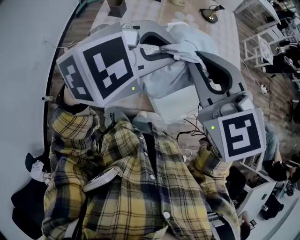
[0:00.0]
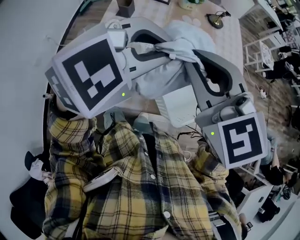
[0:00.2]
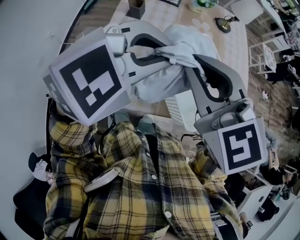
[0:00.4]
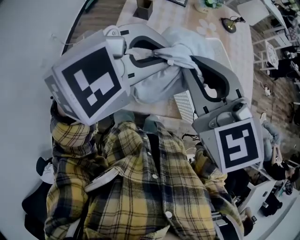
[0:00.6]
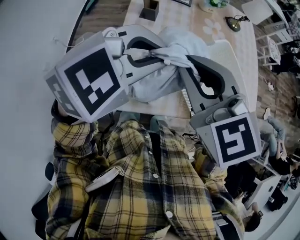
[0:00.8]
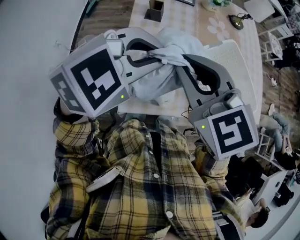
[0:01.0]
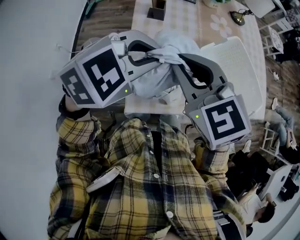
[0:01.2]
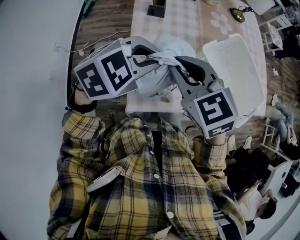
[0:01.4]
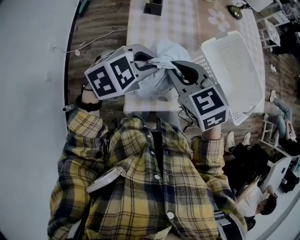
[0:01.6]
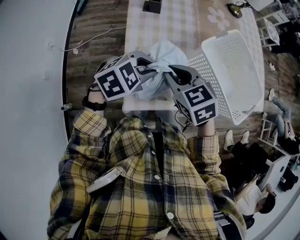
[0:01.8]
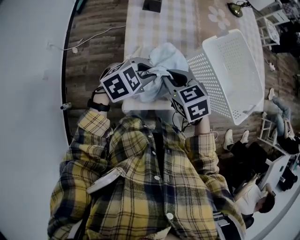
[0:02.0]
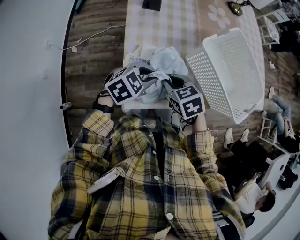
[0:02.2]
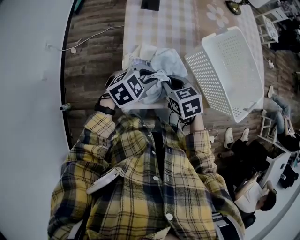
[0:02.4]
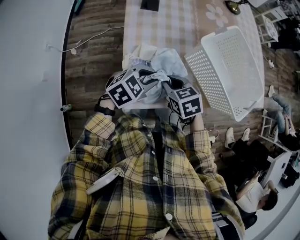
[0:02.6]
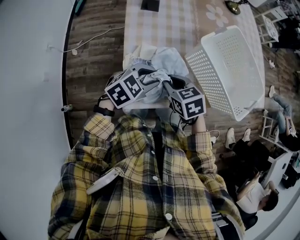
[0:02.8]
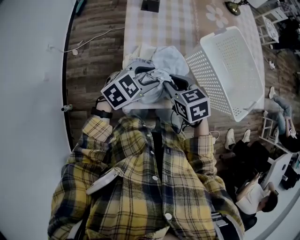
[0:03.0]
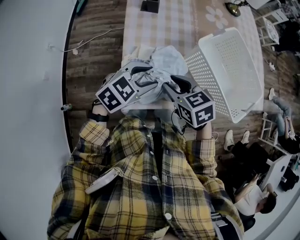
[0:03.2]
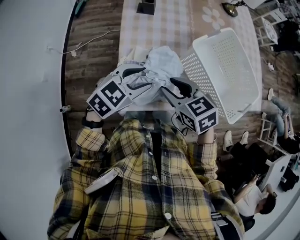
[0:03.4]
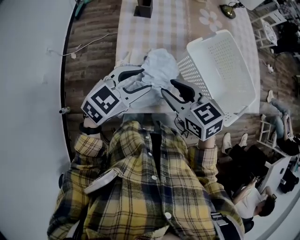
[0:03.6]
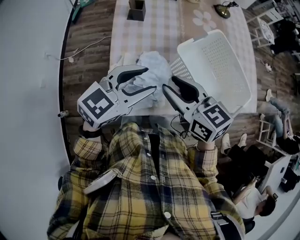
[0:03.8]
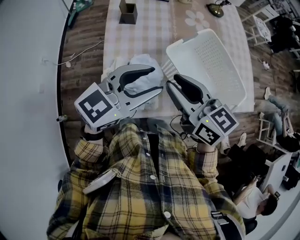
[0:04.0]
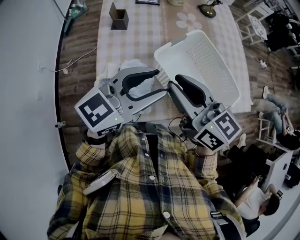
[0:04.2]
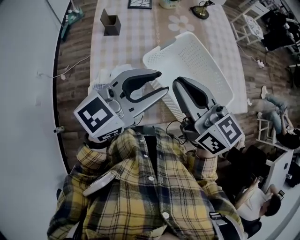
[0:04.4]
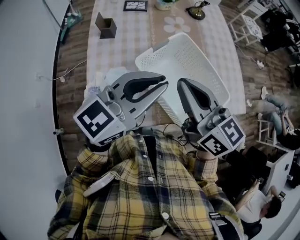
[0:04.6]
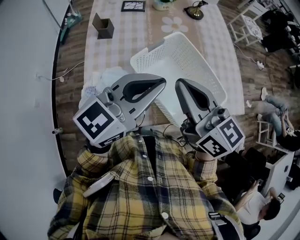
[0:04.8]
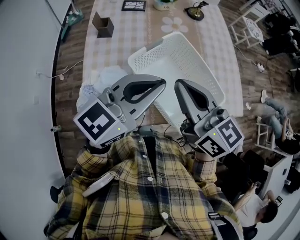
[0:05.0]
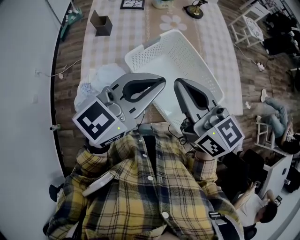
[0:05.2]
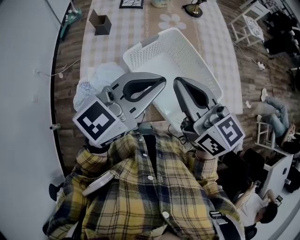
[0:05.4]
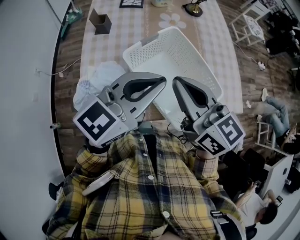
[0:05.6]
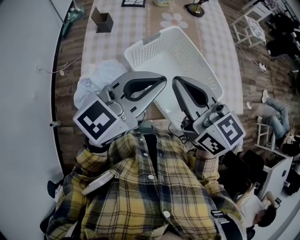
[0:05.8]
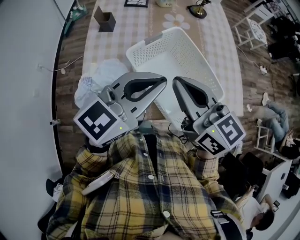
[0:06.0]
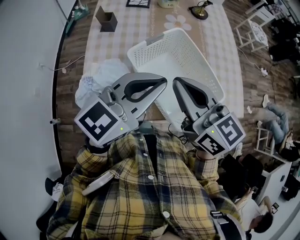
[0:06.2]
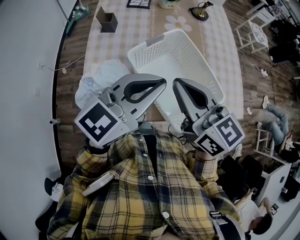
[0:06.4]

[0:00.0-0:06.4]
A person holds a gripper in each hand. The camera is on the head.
0:00.0 to 0:01.6: Both grippers move to the left and downward, approximately 35 cm. The right gripper swivels roughly 20 degrees.
0:01.6 to 0:03.2: The grippers both shift downward by roughly 10 cm. The left gripper opens its fingers.
0:03.2 to 0:04.8: The two grippers go approximately 30 cm upward and to the right. The left gripper points its fingers roughly 40 degrees further upward, and closes up. Meanwhile the right gripper points its fingers approximately 40 degrees further upward, and closes its fingers.
0:04.8 to 0:06.4: There are only small adjustments of the grippers.

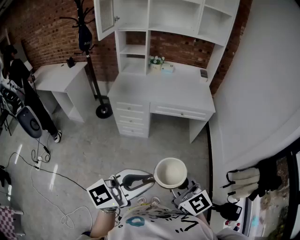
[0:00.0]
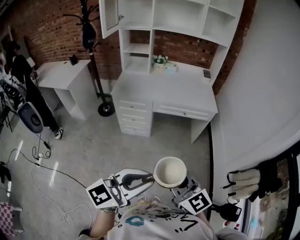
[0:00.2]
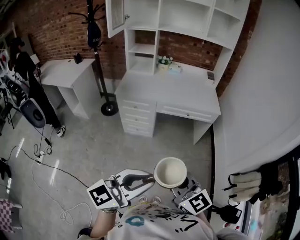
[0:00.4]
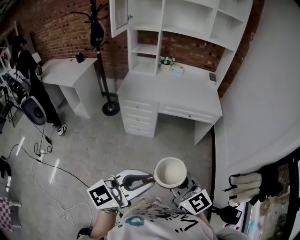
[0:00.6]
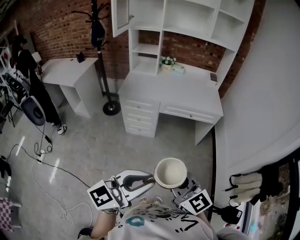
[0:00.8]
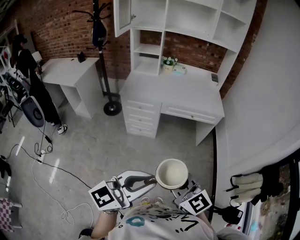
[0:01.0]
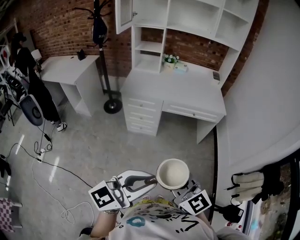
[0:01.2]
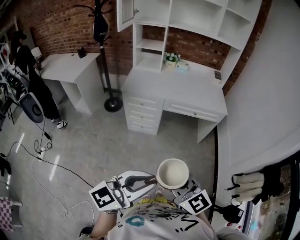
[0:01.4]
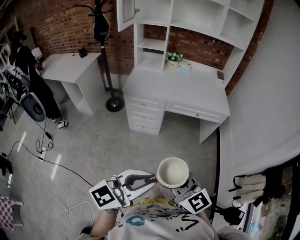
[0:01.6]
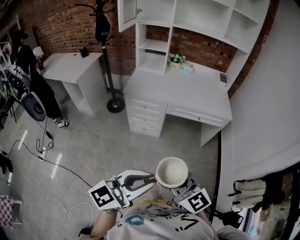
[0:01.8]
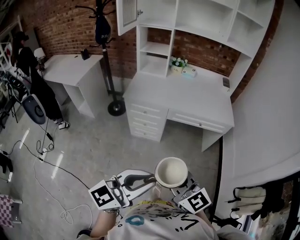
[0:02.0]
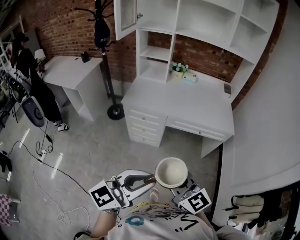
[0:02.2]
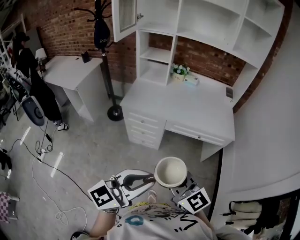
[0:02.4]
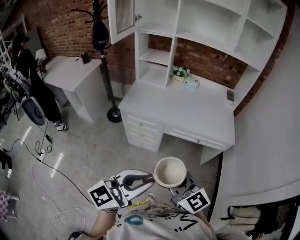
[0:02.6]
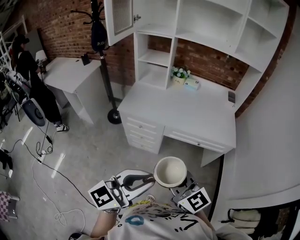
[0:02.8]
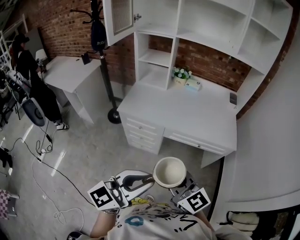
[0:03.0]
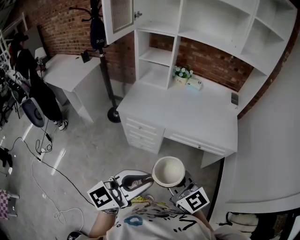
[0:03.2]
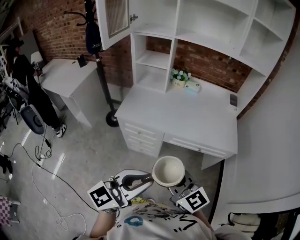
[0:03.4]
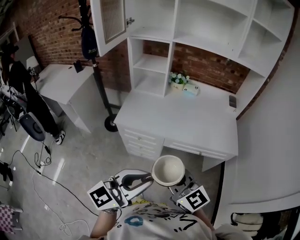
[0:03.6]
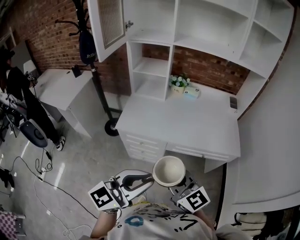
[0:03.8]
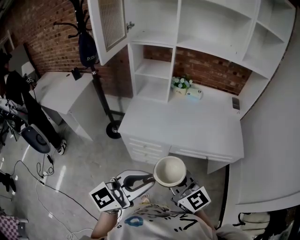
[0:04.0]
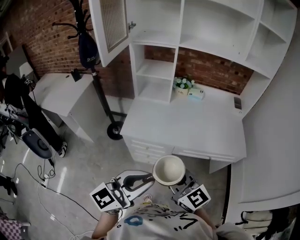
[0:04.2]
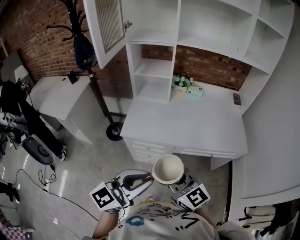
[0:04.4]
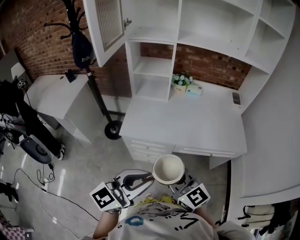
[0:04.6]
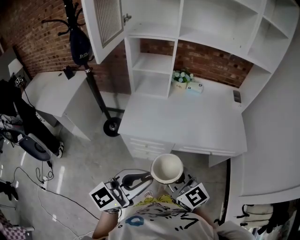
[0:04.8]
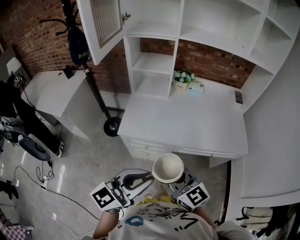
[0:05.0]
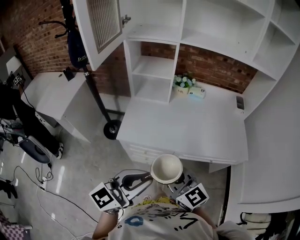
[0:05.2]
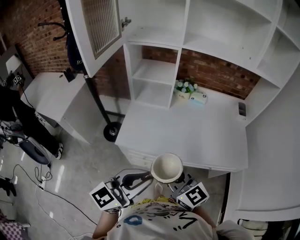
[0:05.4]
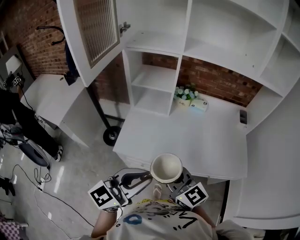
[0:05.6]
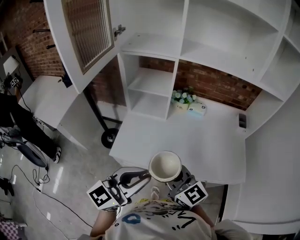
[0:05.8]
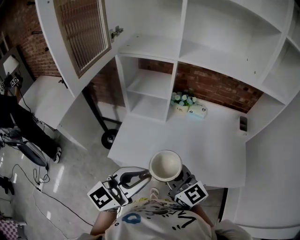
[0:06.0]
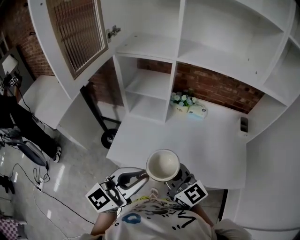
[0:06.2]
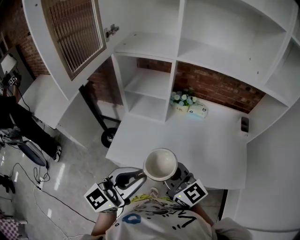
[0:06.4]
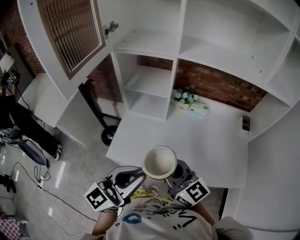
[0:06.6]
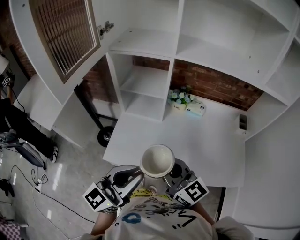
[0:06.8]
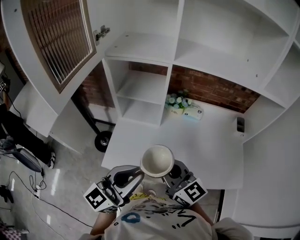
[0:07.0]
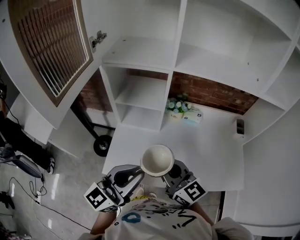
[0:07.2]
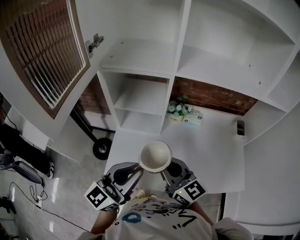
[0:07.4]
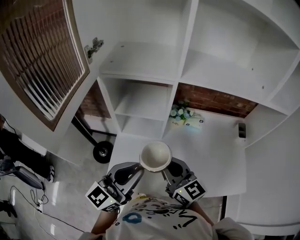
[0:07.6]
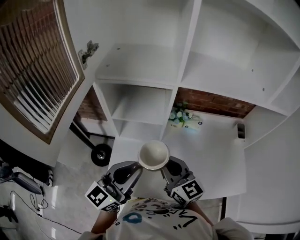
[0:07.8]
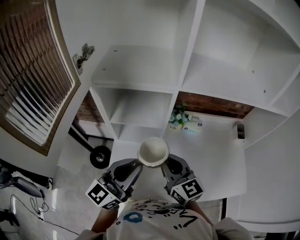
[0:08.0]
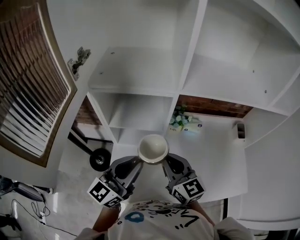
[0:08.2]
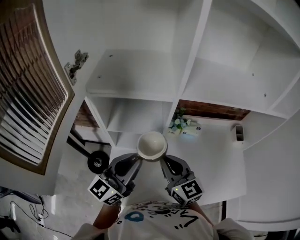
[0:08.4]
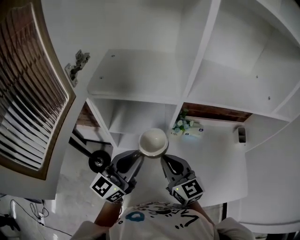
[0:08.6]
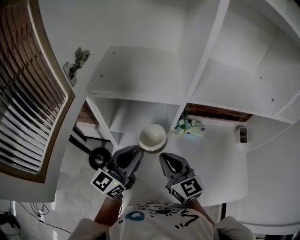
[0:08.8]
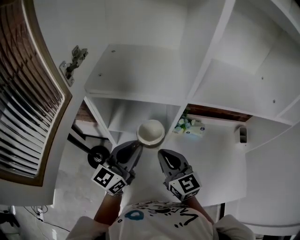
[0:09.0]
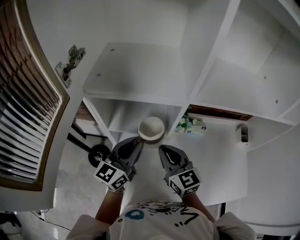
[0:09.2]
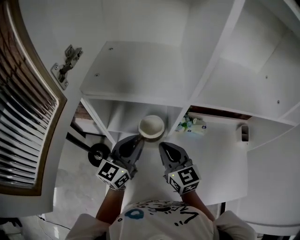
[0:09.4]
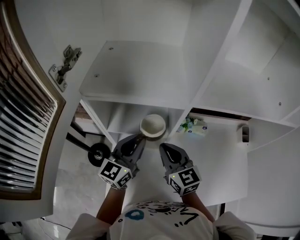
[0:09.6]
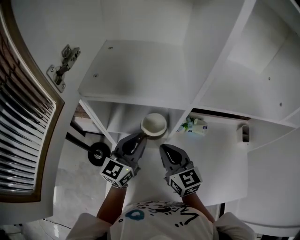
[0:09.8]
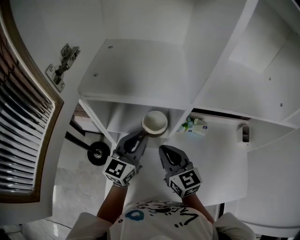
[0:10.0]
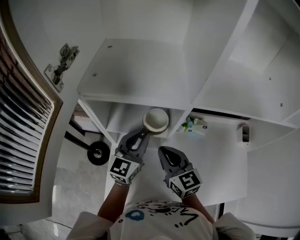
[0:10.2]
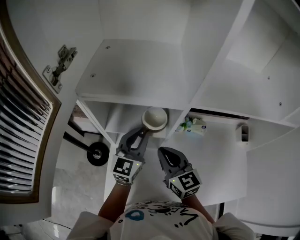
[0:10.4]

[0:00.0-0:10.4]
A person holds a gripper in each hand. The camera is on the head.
0:00.0 to 0:01.4: Both grippers travel together to the left, about 10 cm.
0:01.4 to 0:03.0: The two grippers go about 30 cm forward.
0:03.0 to 0:04.4: The grippers both shift forward and to the left by some 20 cm.
0:04.4 to 0:06.0: Both grippers move forward, roughly 20 cm.
0:06.0 to 0:07.4: Both grippers move forward, about 15 cm.
0:07.4 to 0:09.0: The grippers both shift forward by about 20 cm.
0:09.0 to 0:10.4: The left gripper travels forward by roughly 10 cm.

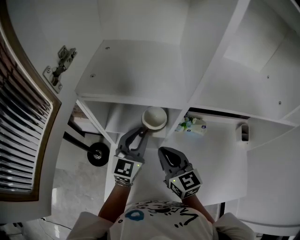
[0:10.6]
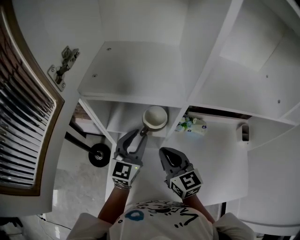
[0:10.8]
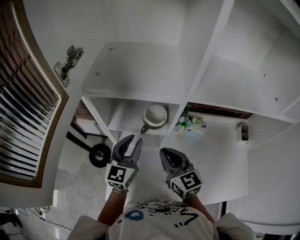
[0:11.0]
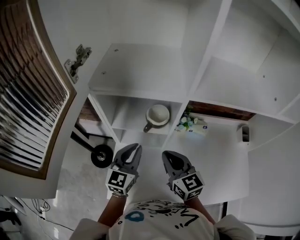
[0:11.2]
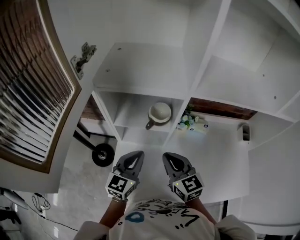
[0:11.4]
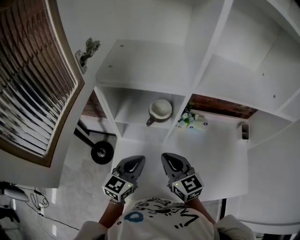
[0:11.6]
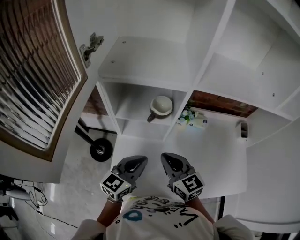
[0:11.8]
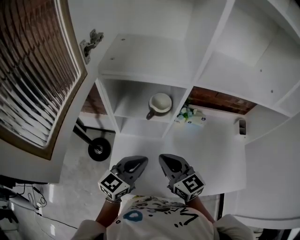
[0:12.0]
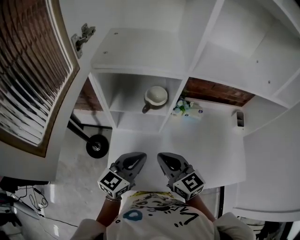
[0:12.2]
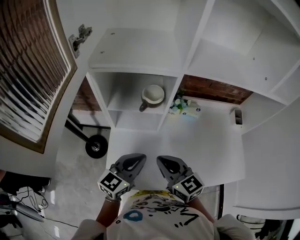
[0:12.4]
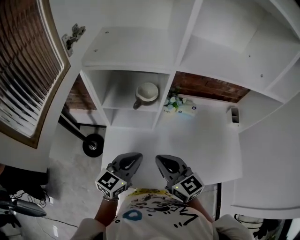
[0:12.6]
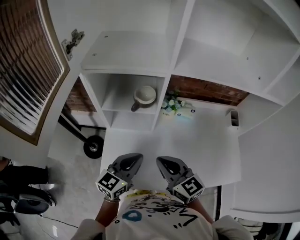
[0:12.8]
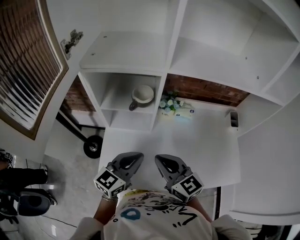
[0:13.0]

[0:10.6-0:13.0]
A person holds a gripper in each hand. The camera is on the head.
0:10.6 to 0:11.8: The right gripper shifts roughly 10 cm backward, while the left gripper travels backward by about 15 cm, and changes its angle by approximately 20 degrees.
0:11.8 to 0:13.0: The right gripper shifts approximately 5 cm backward, while the left gripper heads to the right, covering approximately 5 cm.

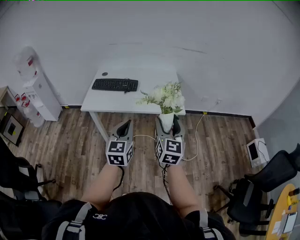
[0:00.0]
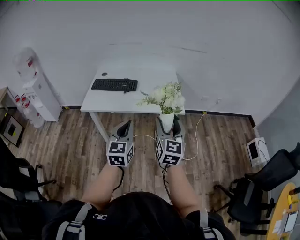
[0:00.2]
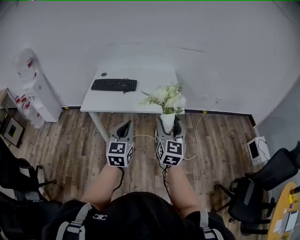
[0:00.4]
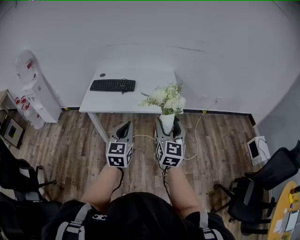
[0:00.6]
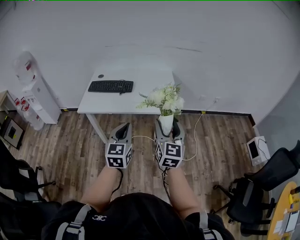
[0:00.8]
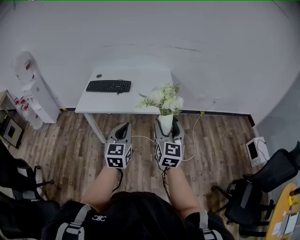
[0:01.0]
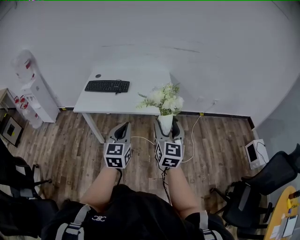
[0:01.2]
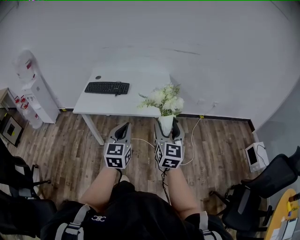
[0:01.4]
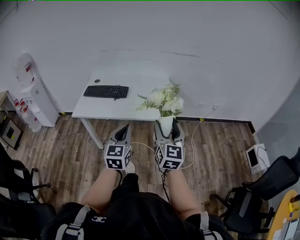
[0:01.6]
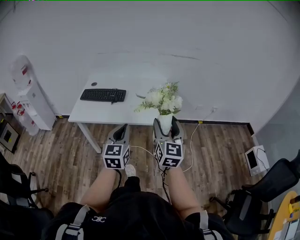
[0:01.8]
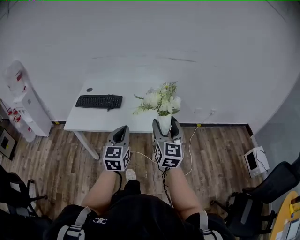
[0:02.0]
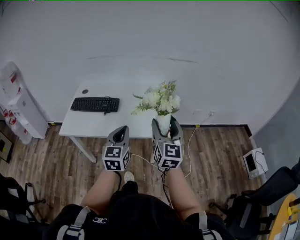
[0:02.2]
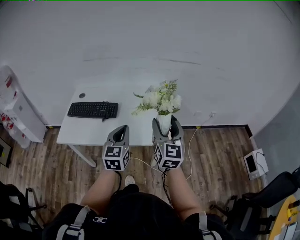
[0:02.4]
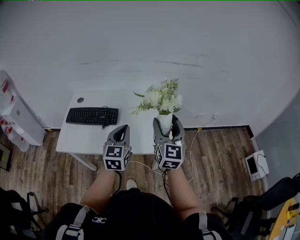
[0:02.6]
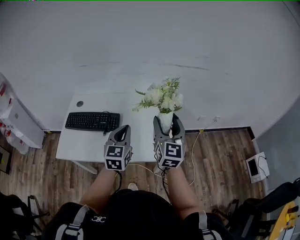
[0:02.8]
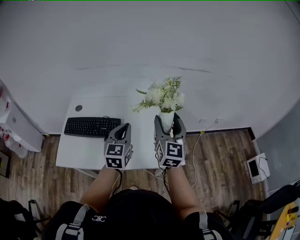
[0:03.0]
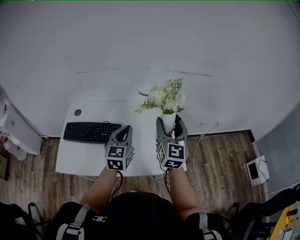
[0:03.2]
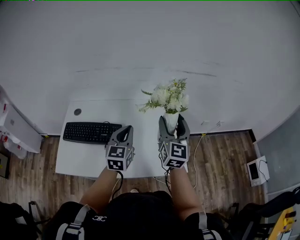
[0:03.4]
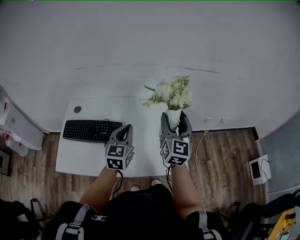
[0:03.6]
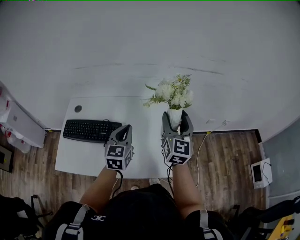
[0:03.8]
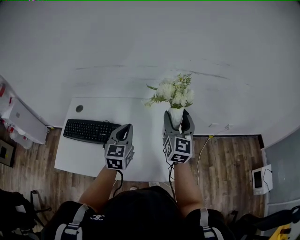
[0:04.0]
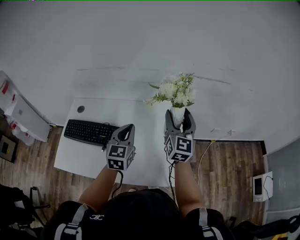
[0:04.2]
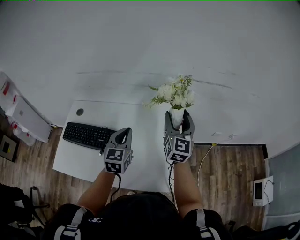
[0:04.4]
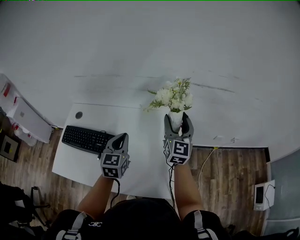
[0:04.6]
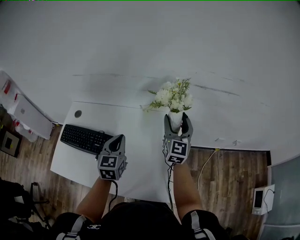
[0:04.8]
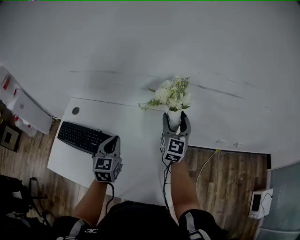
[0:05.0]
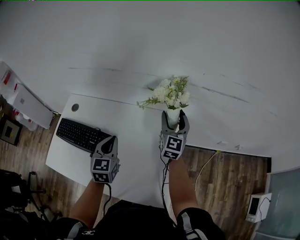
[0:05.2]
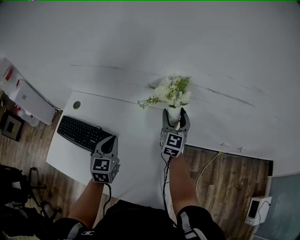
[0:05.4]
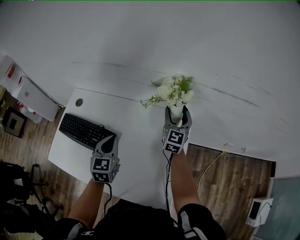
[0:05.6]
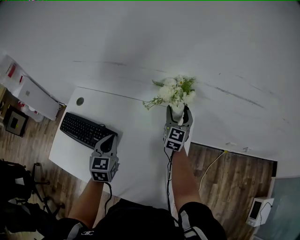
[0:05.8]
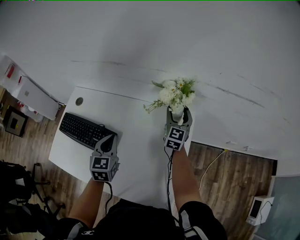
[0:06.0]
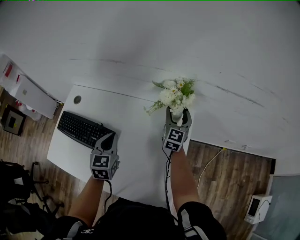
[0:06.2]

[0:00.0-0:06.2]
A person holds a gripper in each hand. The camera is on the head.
0:00.0 to 0:01.6: Both grippers move to the right, approximately 10 cm.
0:01.6 to 0:03.2: The two grippers travel together, forward, roughly 50 cm.
0:03.2 to 0:04.6: The left gripper moves forward, about 15 cm. The right gripper goes about 25 cm forward.
0:04.6 to 0:06.2: The left gripper goes some 15 cm downward and forward, while the right gripper travels forward and downward by about 25 cm.
